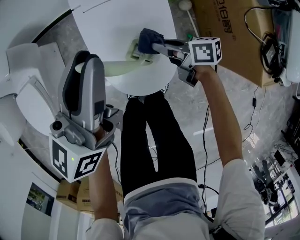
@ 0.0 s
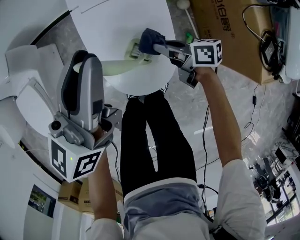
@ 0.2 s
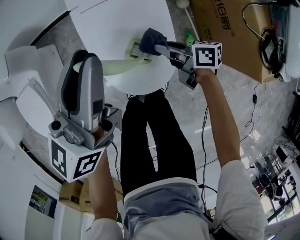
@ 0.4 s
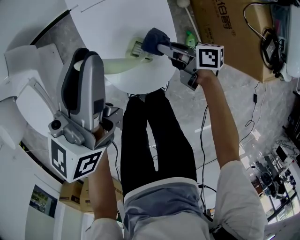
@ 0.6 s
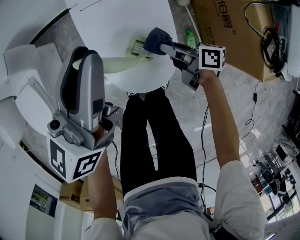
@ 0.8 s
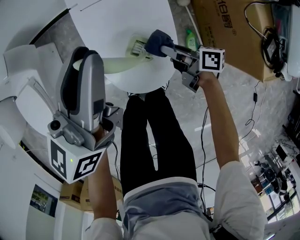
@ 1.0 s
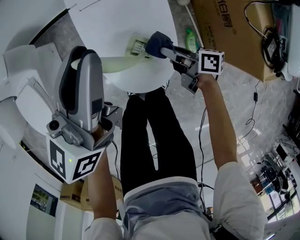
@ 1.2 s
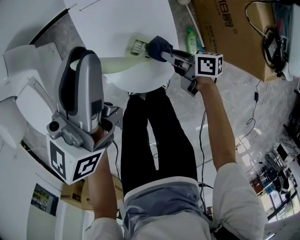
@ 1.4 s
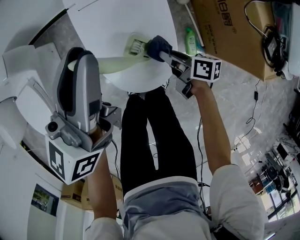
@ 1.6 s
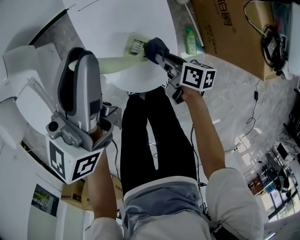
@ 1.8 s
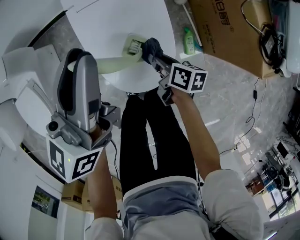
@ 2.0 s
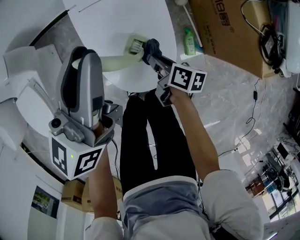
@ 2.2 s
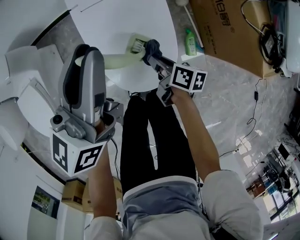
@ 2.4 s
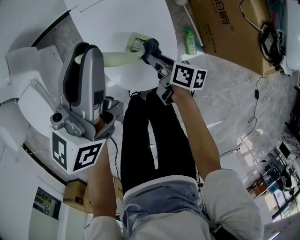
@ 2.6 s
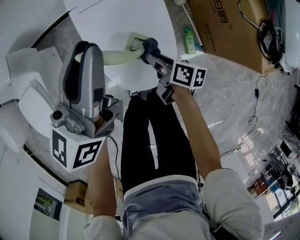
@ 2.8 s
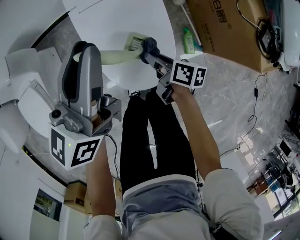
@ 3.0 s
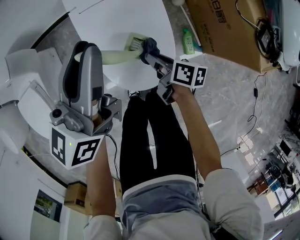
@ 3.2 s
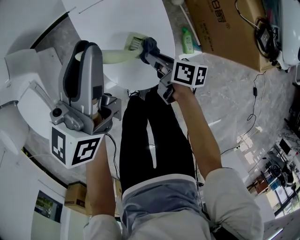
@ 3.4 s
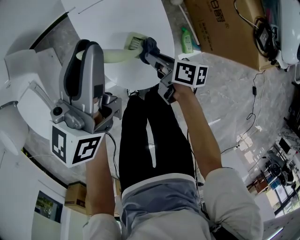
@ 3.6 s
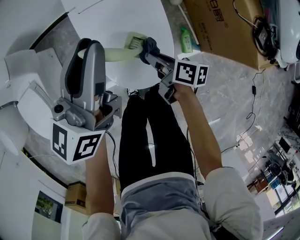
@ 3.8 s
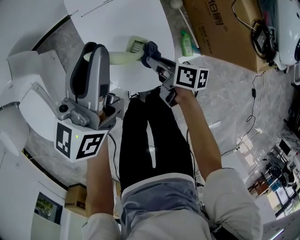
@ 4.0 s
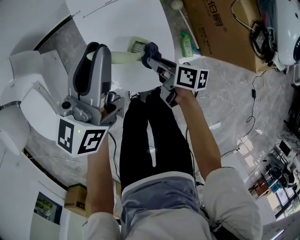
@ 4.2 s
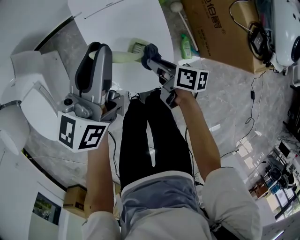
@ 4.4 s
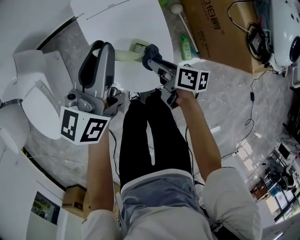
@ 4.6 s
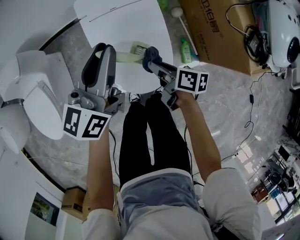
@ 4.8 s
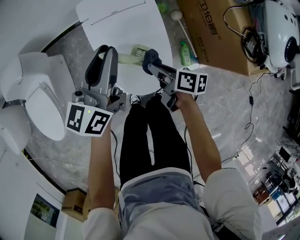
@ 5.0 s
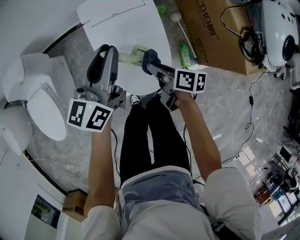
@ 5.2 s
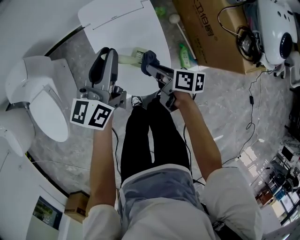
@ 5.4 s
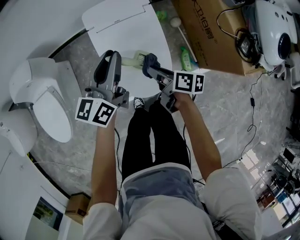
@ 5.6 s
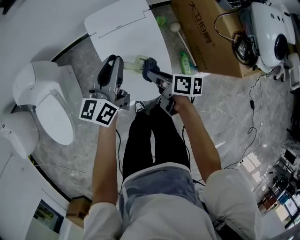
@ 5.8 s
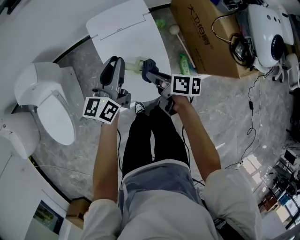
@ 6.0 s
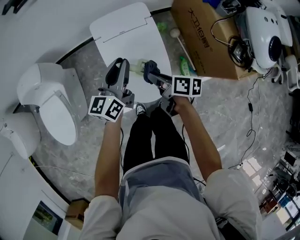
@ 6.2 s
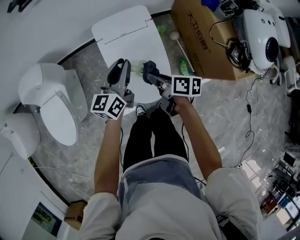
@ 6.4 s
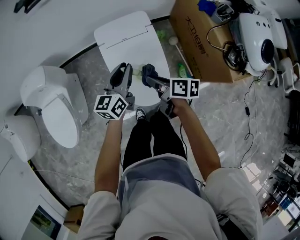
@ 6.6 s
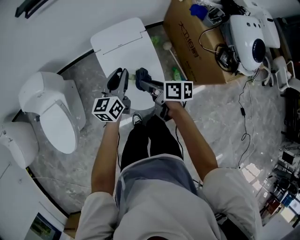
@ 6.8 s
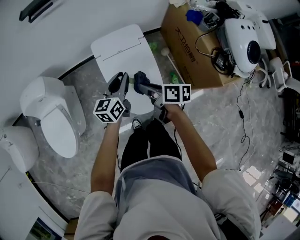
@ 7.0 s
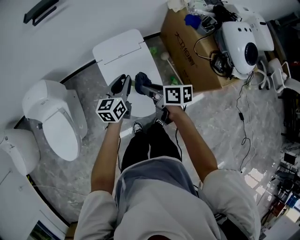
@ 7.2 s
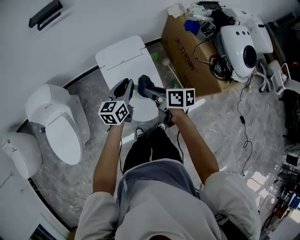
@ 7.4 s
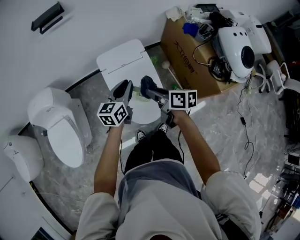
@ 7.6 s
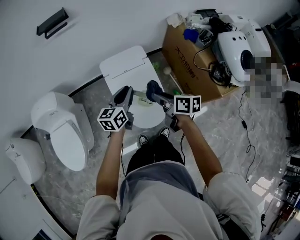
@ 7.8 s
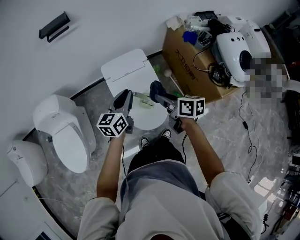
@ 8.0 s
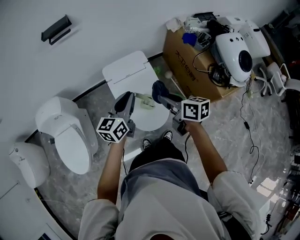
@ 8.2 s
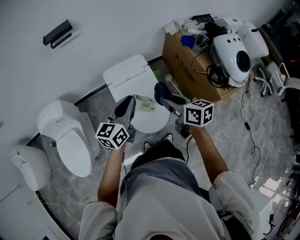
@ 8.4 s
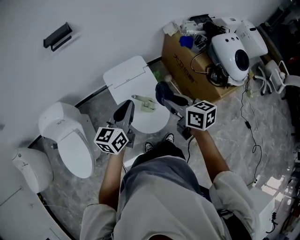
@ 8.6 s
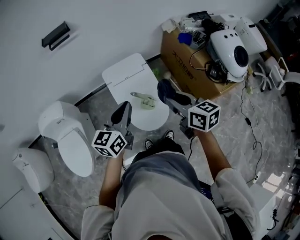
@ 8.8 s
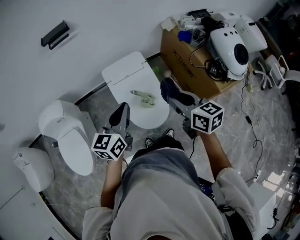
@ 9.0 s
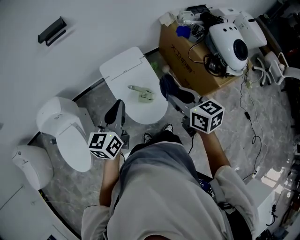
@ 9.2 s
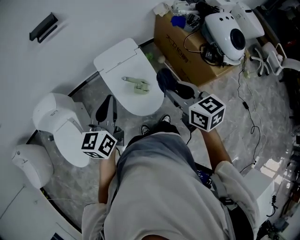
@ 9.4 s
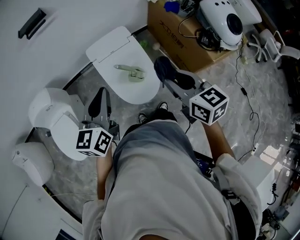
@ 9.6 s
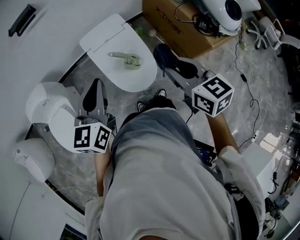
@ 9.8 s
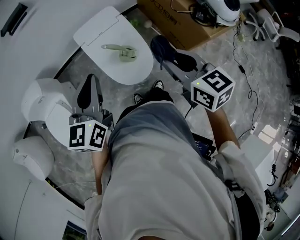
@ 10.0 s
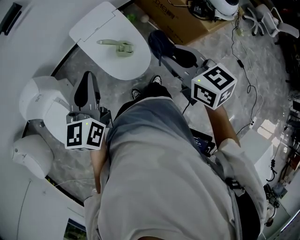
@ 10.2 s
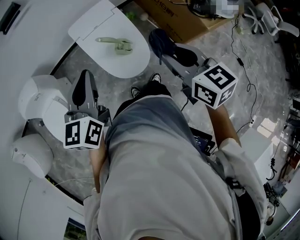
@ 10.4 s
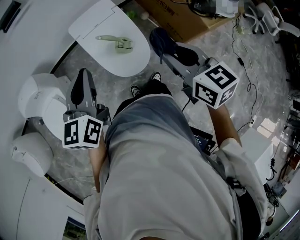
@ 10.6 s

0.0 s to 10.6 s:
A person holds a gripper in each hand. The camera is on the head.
0.0 to 1.6 s: The right gripper travels backward by some 5 cm.
1.6 to 3.0 s: The right gripper shifts by some 5 cm.
3.0 to 4.6 s: The right gripper is displaced upward by some 5 cm.
4.6 to 6.0 s: The right gripper shifts approximately 10 cm upward.
6.0 to 7.6 s: The right gripper heads upward, covering about 15 cm.
7.6 to 9.0 s: Both grippers travel together upward and backward, approximately 15 cm. The right gripper changes its angle by roughly 30 degrees.
9.0 to 10.6 s: The right gripper moves backward, roughly 10 cm, while the left gripper goes some 5 cm backward.

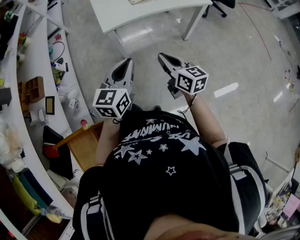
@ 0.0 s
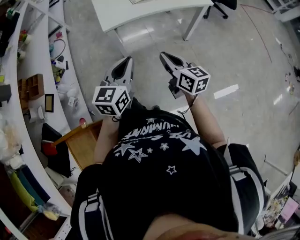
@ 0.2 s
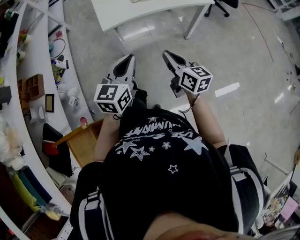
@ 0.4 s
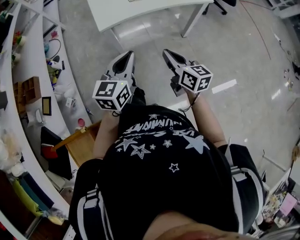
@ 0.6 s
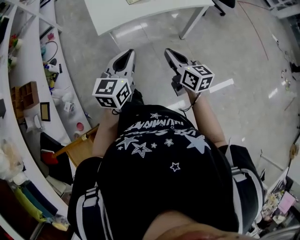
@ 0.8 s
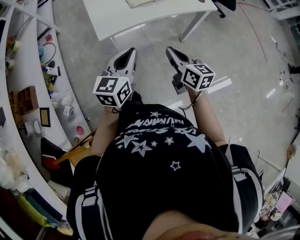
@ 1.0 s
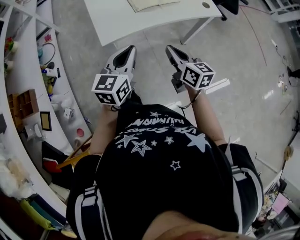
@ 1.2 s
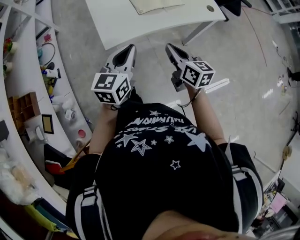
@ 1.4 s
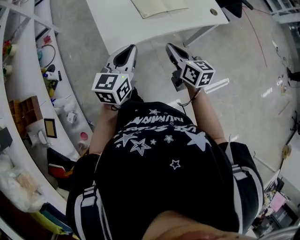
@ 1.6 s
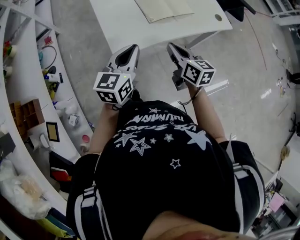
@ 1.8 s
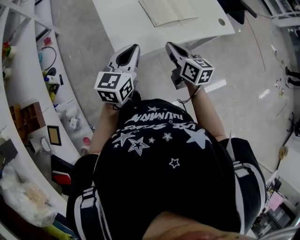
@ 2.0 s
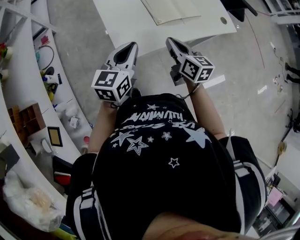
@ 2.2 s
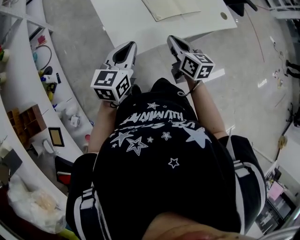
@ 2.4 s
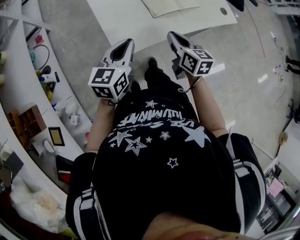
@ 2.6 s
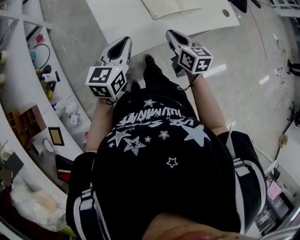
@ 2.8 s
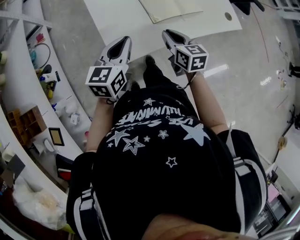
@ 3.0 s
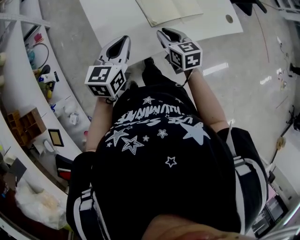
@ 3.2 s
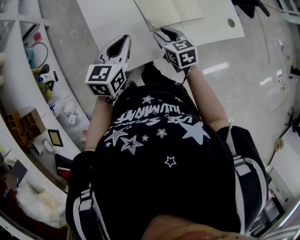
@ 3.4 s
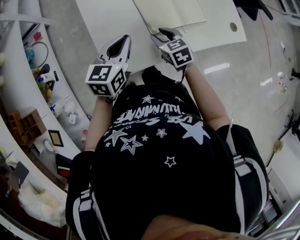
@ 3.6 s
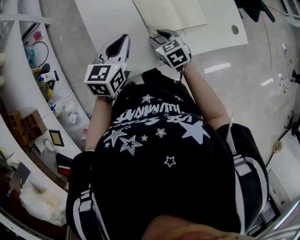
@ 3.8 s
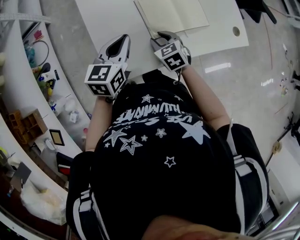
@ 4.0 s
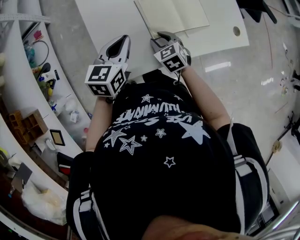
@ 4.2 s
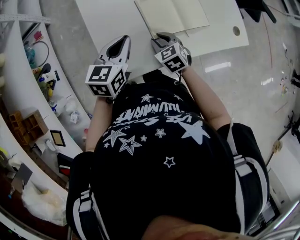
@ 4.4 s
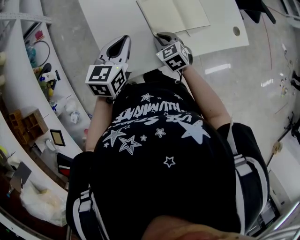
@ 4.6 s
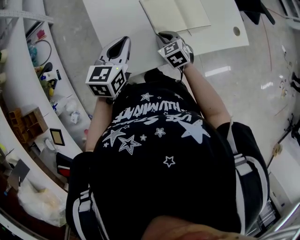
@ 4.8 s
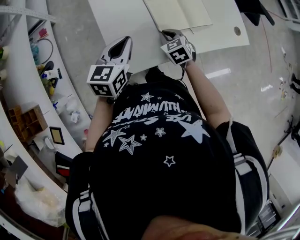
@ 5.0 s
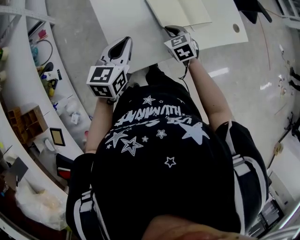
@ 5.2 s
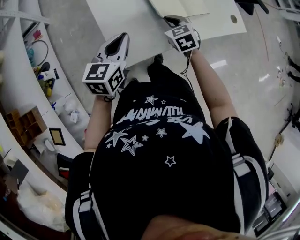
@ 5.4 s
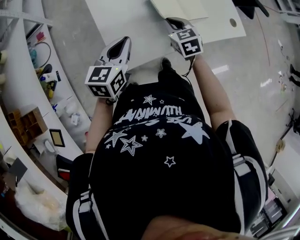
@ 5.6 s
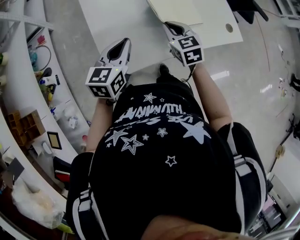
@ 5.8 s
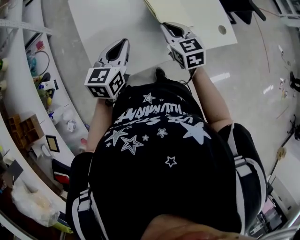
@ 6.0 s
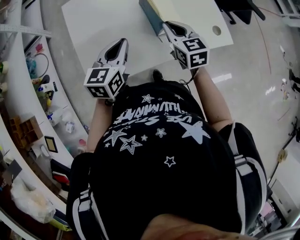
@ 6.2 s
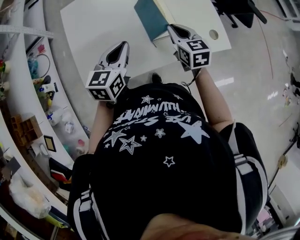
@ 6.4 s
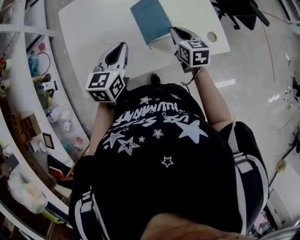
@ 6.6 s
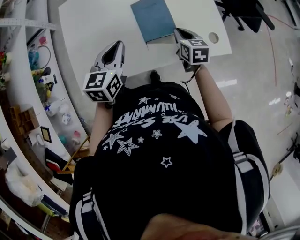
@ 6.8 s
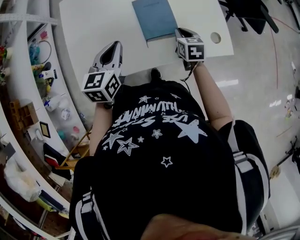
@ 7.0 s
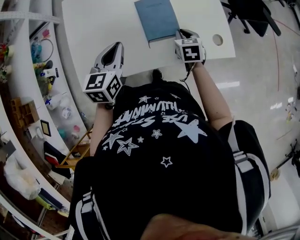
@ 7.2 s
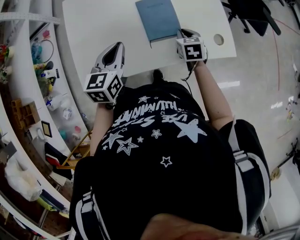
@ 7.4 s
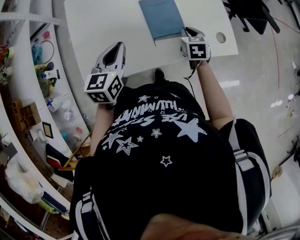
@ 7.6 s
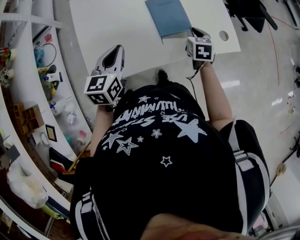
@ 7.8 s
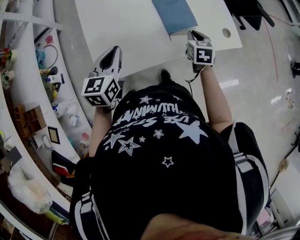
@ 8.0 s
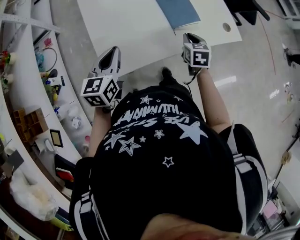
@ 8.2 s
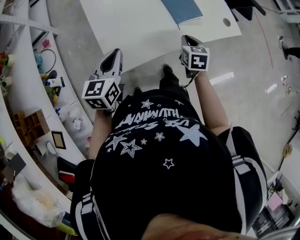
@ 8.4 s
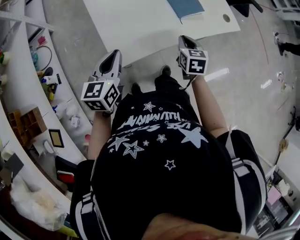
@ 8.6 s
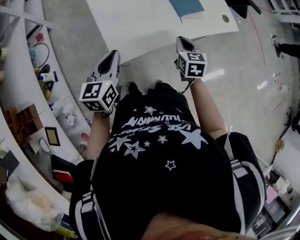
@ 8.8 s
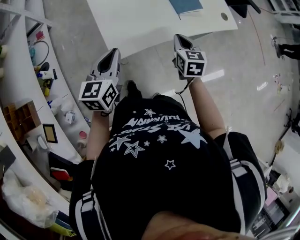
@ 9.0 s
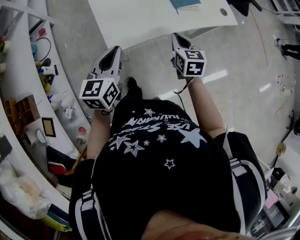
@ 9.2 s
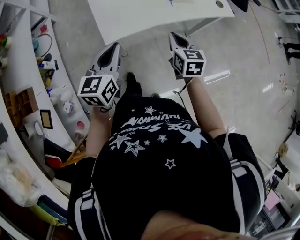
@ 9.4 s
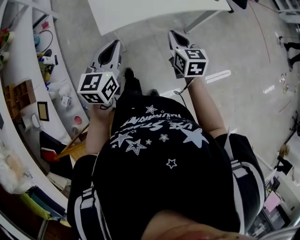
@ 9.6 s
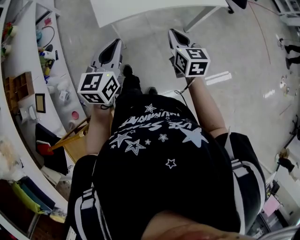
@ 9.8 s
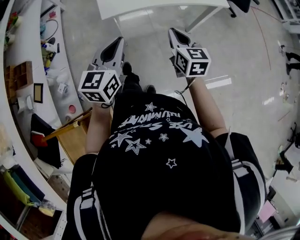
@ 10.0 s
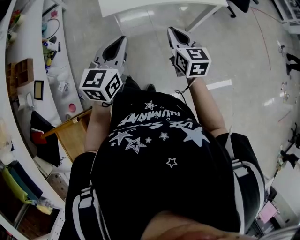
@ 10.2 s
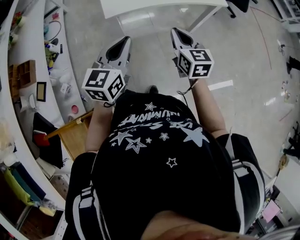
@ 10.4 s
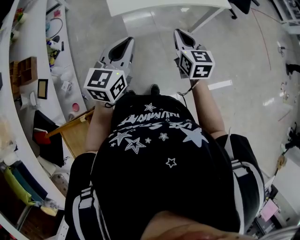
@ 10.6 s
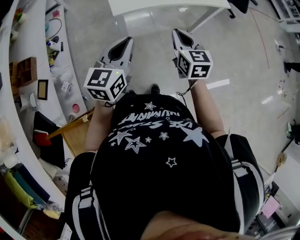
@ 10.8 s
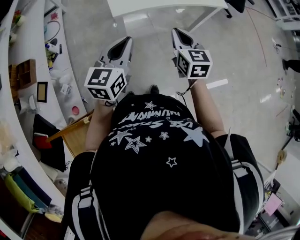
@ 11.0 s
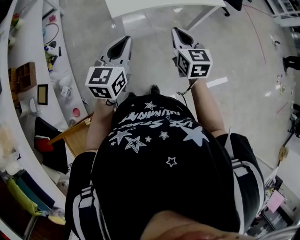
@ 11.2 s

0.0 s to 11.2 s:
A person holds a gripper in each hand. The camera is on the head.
0.0 to 1.6 s: The two grippers go some 25 cm forward.
1.6 to 3.2 s: The grippers both shift forward by some 15 cm. The right gripper rotates roughly 20 degrees.
3.2 to 4.8 s: The right gripper travels downward by some 10 cm, and rotates approximately 30 degrees; the left gripper is displaced forward by approximately 5 cm.
4.8 to 6.4 s: The left gripper heads to the right, covering roughly 15 cm. The right gripper is displaced to the right and upward by about 25 cm, and changes its angle by roughly 30 degrees.
6.4 to 8.0 s: The right gripper is displaced downward by roughly 5 cm, and turns by roughly 20 degrees; the left gripper shifts roughly 10 cm to the left and backward.
8.0 to 9.6 s: Both grippers travel together backward, approximately 25 cm.
9.6 to 11.2 s: The right gripper heads backward and upward, covering some 15 cm, while the left gripper goes roughly 15 cm backward.

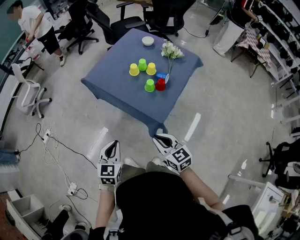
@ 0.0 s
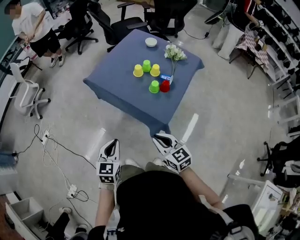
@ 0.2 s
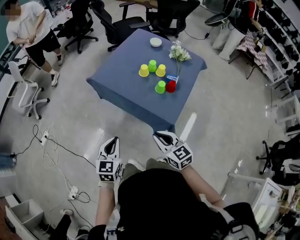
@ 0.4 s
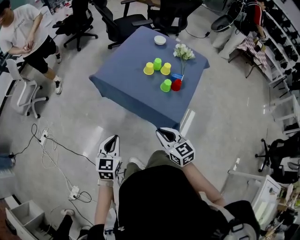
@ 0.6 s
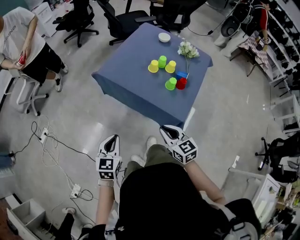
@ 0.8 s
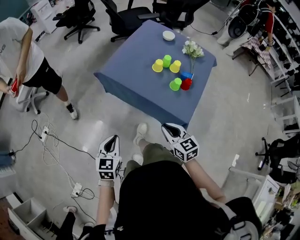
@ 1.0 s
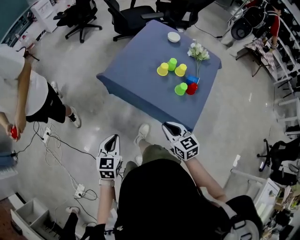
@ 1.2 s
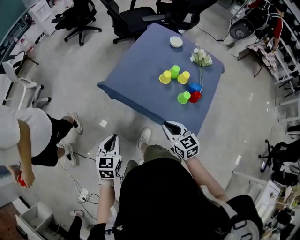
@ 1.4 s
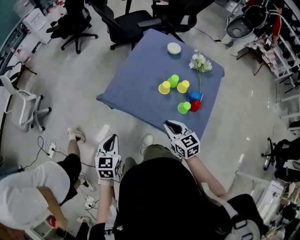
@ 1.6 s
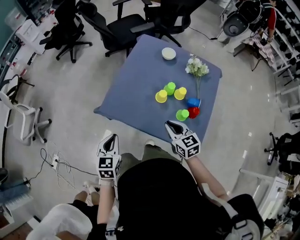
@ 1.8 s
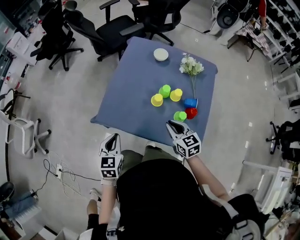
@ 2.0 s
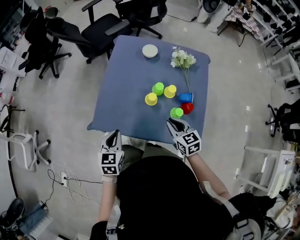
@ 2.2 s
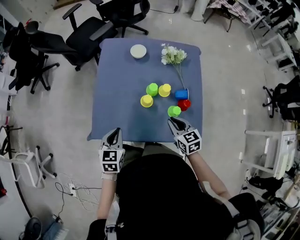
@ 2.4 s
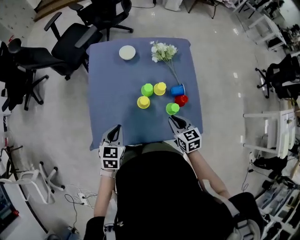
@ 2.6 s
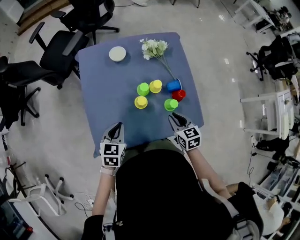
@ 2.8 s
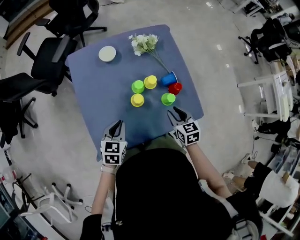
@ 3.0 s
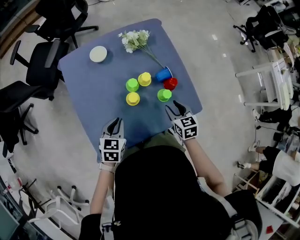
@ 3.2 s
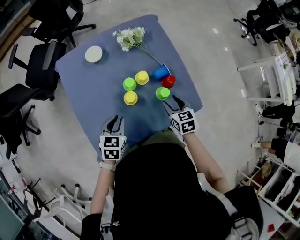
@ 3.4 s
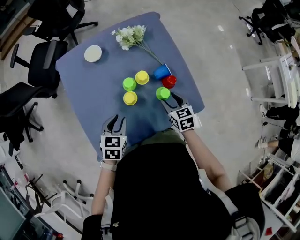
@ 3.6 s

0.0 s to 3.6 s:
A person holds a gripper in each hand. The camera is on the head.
0.0 to 1.8 s: The right gripper heads forward, covering approximately 35 cm, while the left gripper is displaced forward and to the left by roughly 40 cm.
1.8 to 3.6 s: The left gripper shifts by some 30 cm, rotates approximately 60 degrees, and opens. The right gripper changes place by roughly 20 cm, turns by some 50 degrees, and opens.
